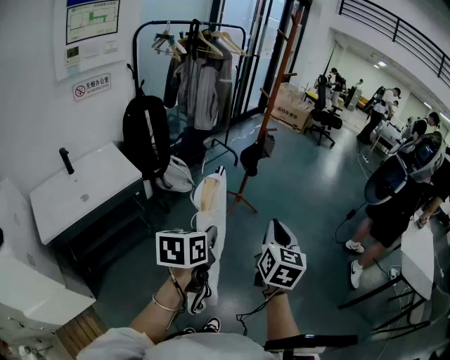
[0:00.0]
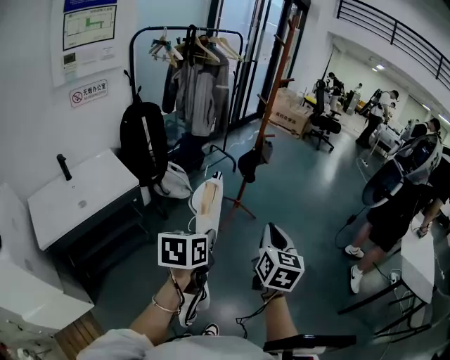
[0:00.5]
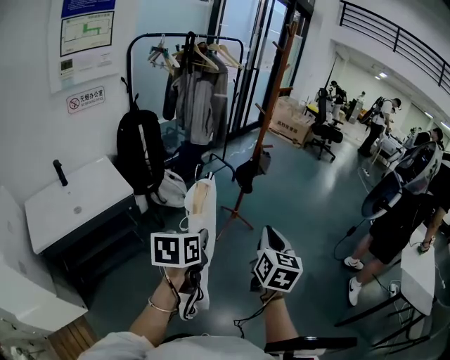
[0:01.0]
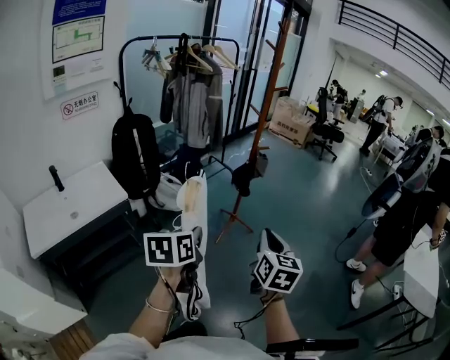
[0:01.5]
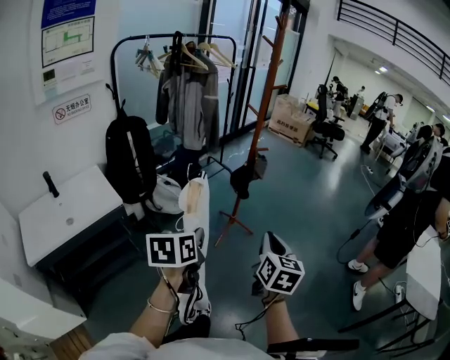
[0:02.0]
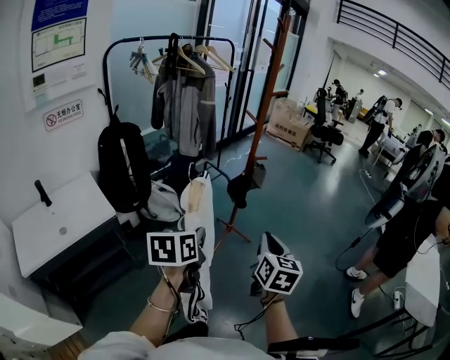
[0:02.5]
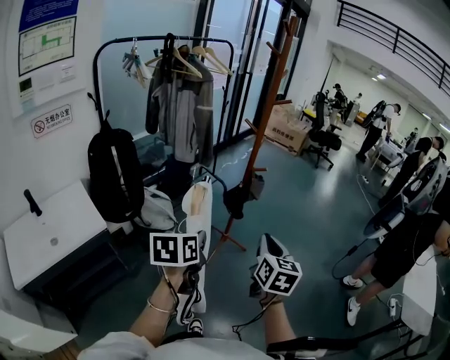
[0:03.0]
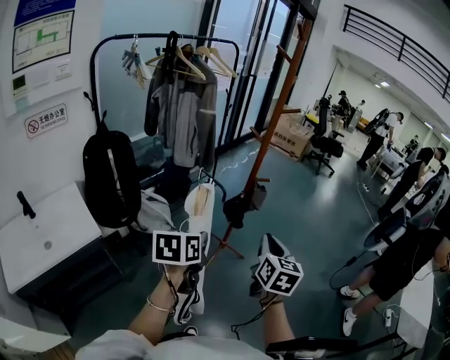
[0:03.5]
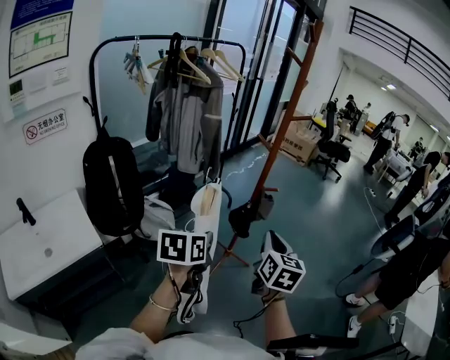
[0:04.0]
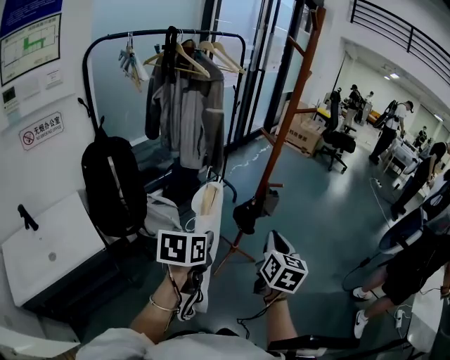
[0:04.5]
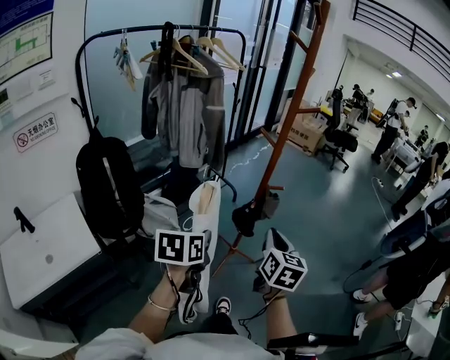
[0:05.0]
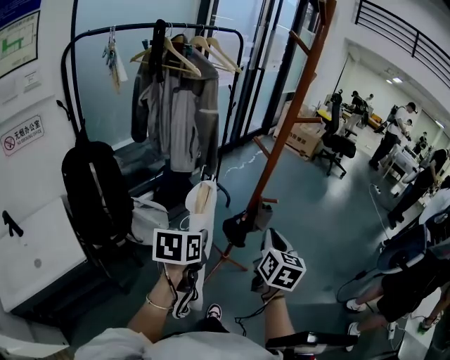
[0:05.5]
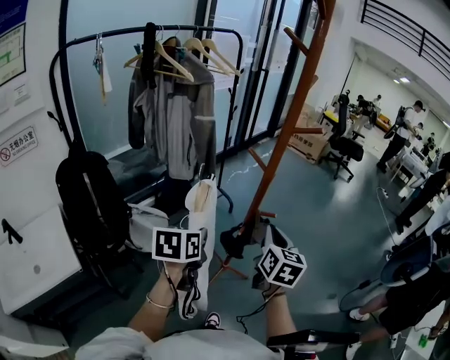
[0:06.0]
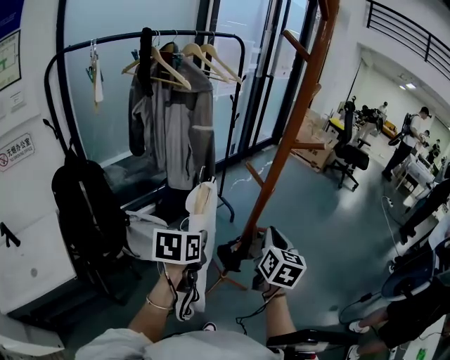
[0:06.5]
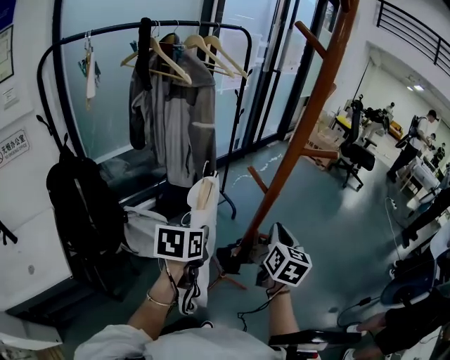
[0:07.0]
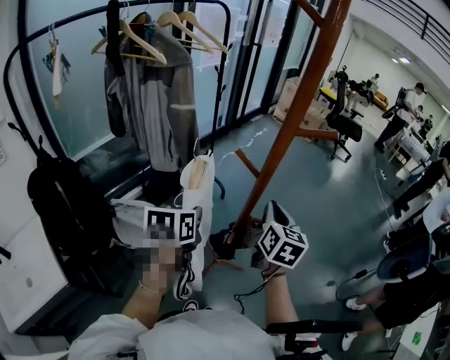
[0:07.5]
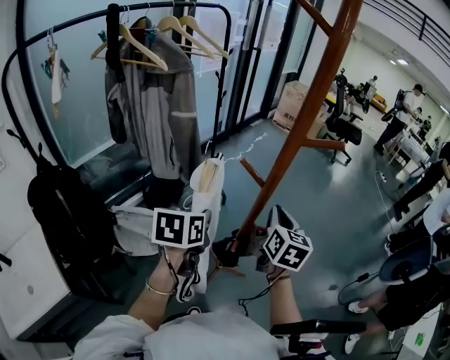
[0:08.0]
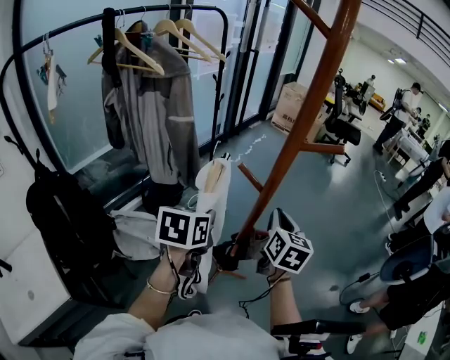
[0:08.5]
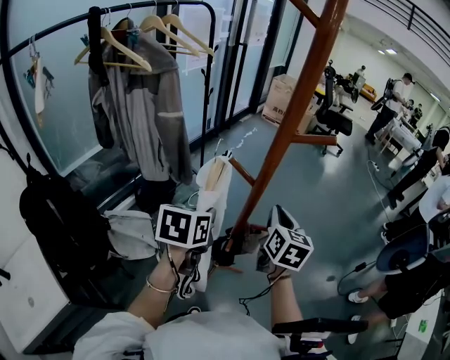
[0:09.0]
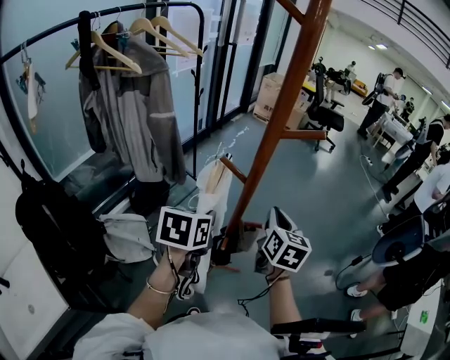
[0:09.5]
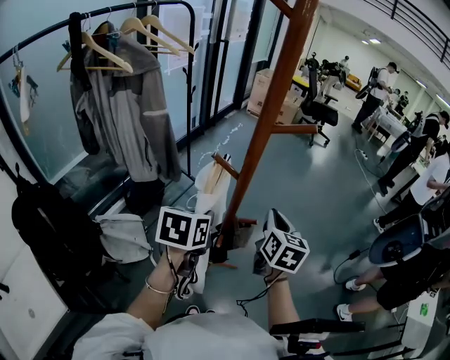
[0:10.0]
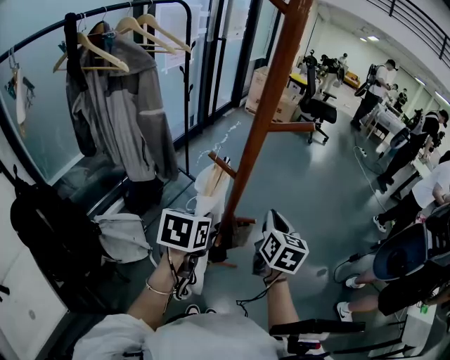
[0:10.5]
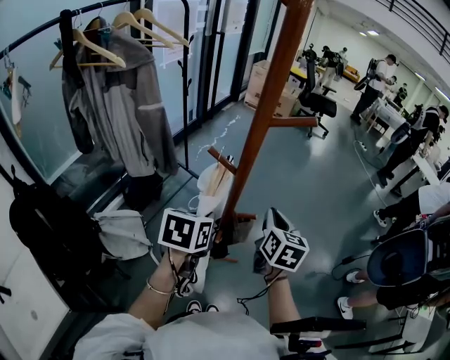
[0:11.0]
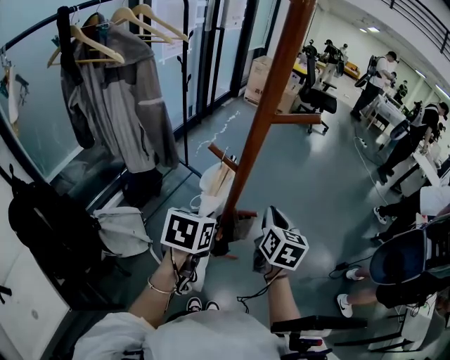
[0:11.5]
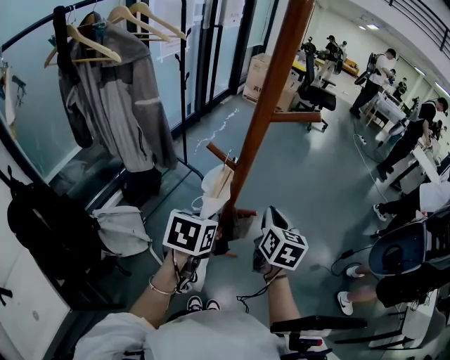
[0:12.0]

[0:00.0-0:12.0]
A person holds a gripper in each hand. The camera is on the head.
0:00.0 to 0:02.0: Both grippers move forward, approximately 15 cm.
0:02.0 to 0:04.0: The grippers both shift forward by approximately 25 cm.
0:04.0 to 0:06.0: Both grippers move forward, approximately 20 cm.
0:06.0 to 0:08.0: Both grippers move forward, approximately 15 cm.
0:08.0 to 0:10.0: Both grippers move to the right, about 5 cm.
0:10.0 to 0:12.0: The grippers move only a little.

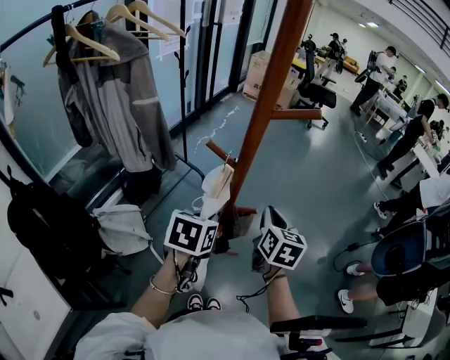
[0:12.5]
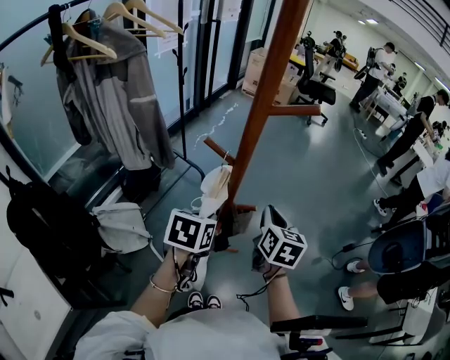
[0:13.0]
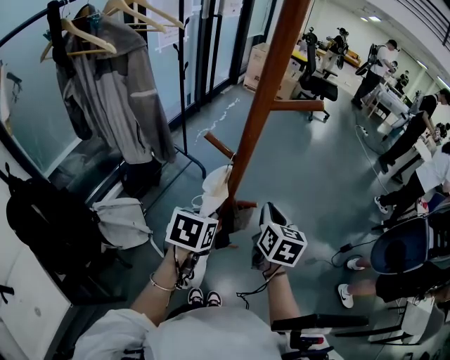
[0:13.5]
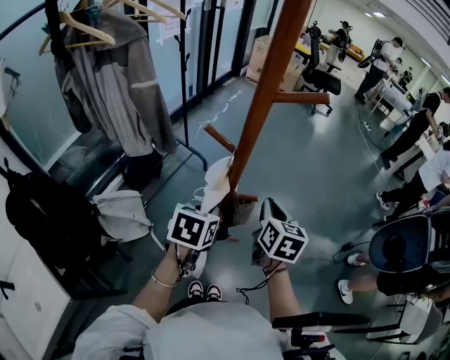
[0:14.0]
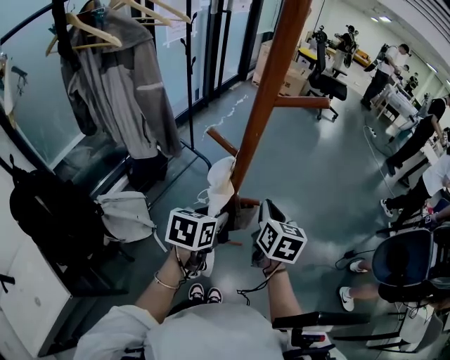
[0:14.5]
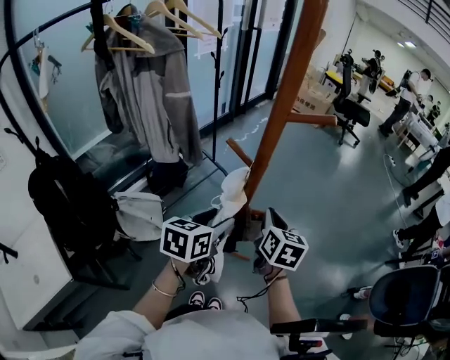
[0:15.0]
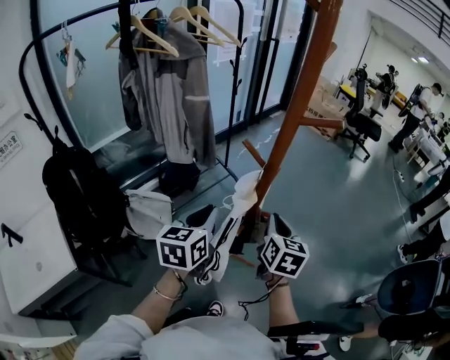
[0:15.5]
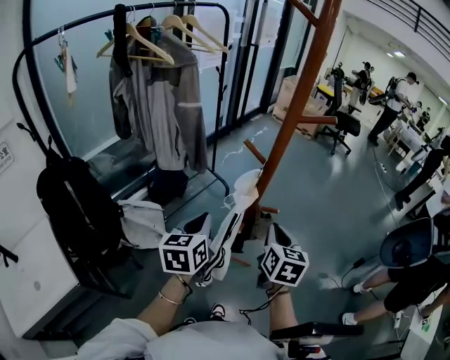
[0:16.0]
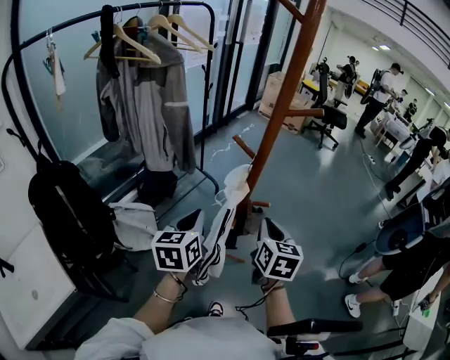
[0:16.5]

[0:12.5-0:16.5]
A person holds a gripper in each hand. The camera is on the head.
0:12.5 to 0:14.5: The left gripper opens its fingers.
0:14.5 to 0:16.5: The right gripper travels backward by roughly 10 cm. The left gripper is displaced to the left, backward and upward by some 15 cm, rotates about 30 degrees, and closes up.

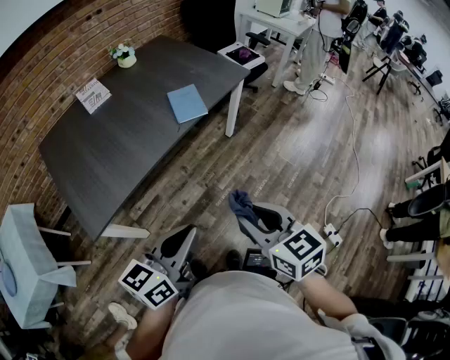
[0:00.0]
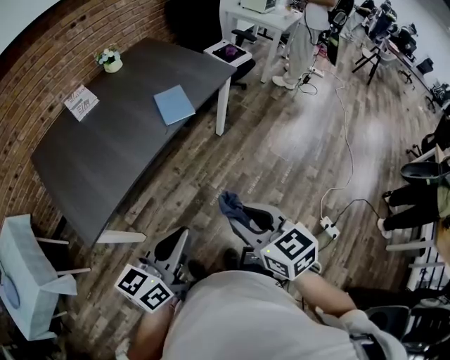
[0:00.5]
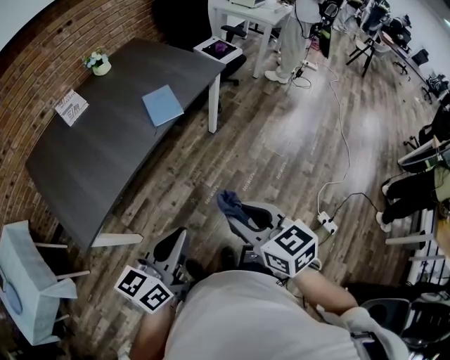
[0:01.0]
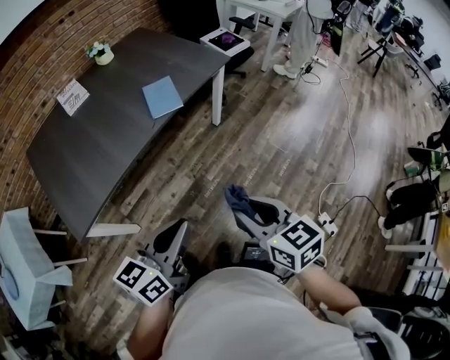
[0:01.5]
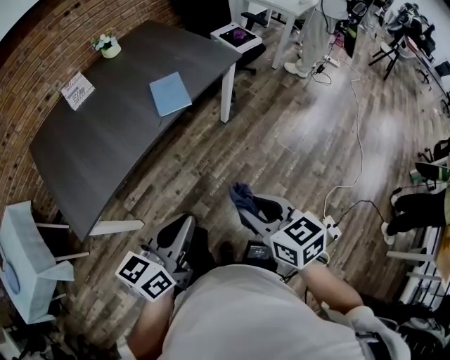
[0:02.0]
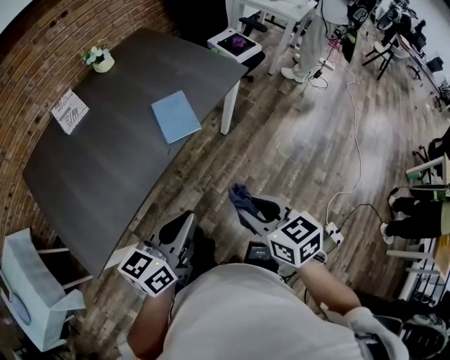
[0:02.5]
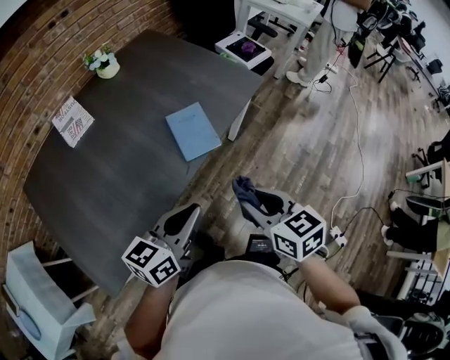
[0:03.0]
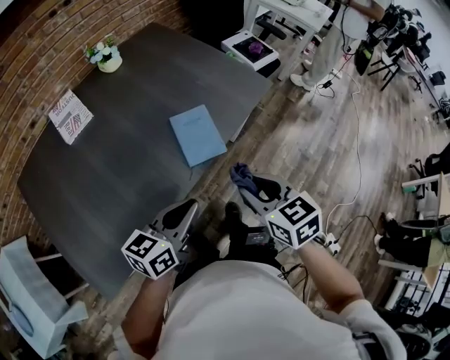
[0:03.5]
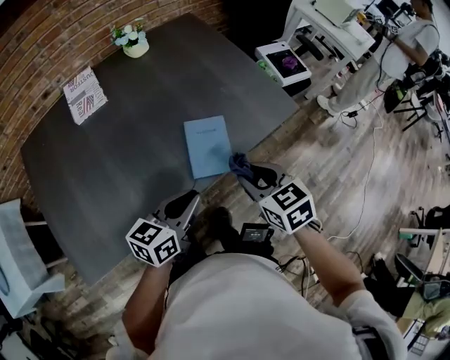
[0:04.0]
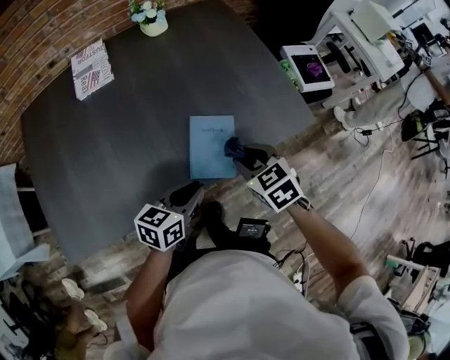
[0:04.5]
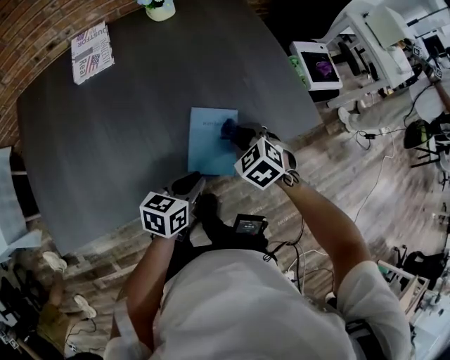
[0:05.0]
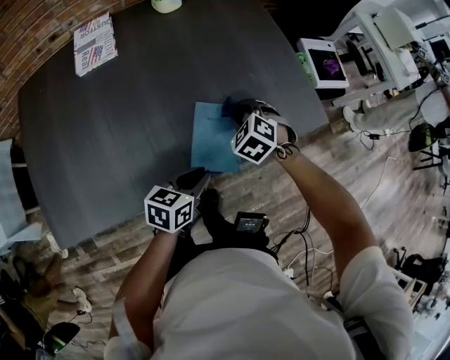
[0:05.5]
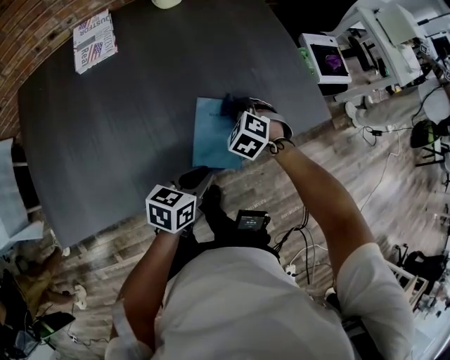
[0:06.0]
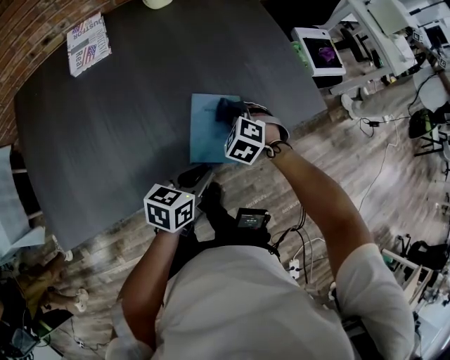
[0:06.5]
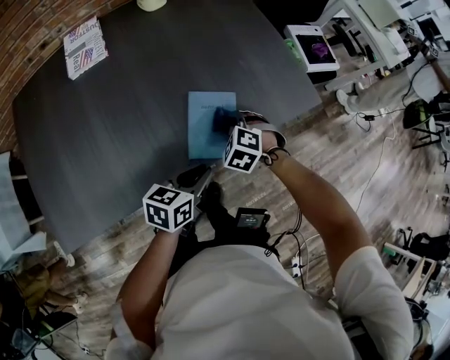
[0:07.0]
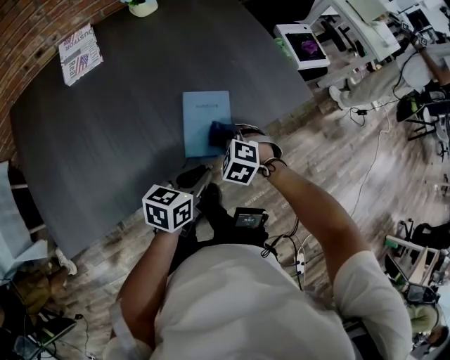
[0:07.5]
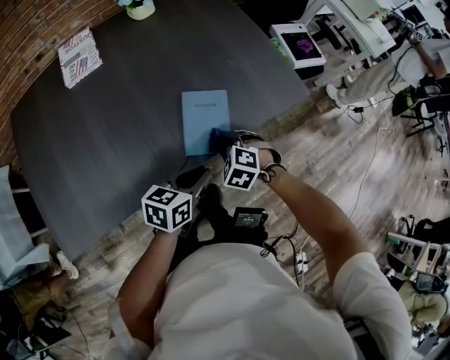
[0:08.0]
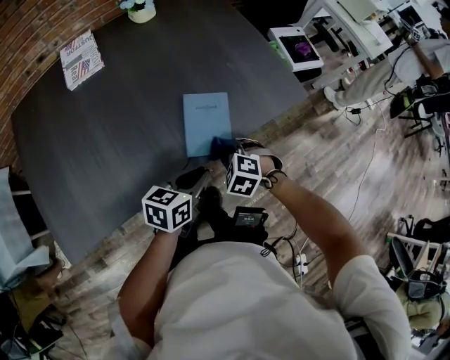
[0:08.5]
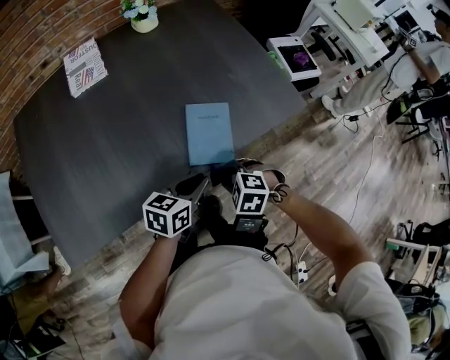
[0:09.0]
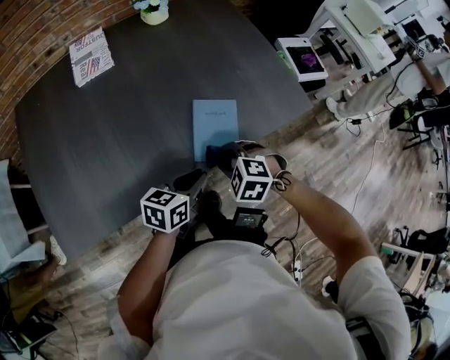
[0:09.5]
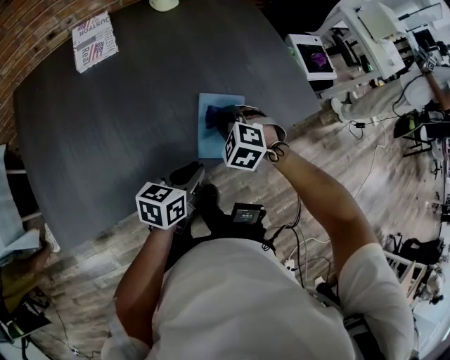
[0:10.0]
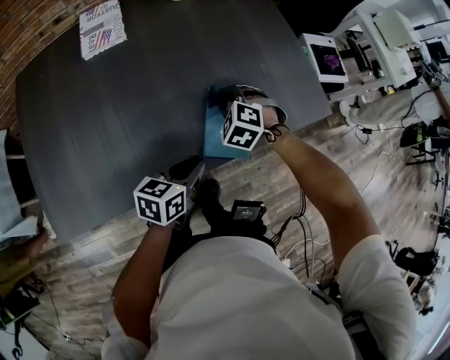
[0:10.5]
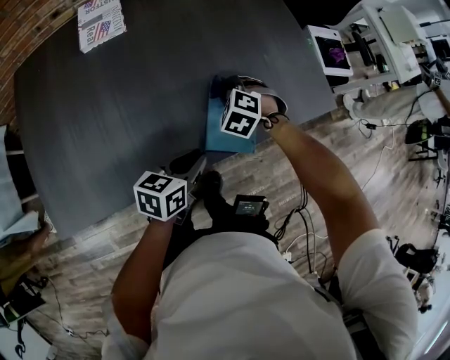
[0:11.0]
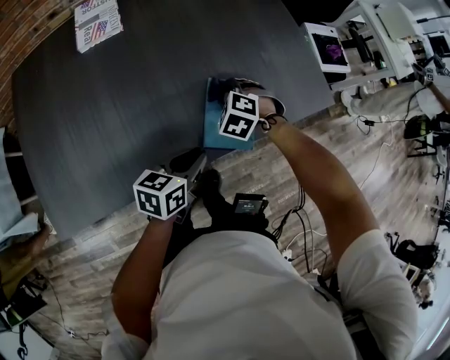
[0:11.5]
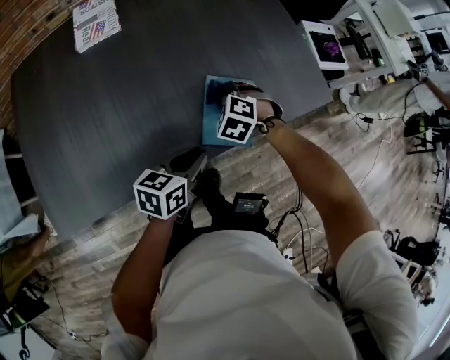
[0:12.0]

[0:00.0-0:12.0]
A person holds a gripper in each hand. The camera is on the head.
0:00.0 to 0:02.0: The right gripper shifts roughly 10 cm to the right and forward; the left gripper heads forward and to the right, covering some 10 cm.
0:02.0 to 0:04.0: Both grippers move forward, about 40 cm. The right gripper rotates approximately 20 degrees.
0:04.0 to 0:06.0: The right gripper is displaced forward and downward by about 25 cm, and twists some 50 degrees counterclockwise, seen from behind. The left gripper heads downward and forward, covering some 15 cm.
0:06.0 to 0:08.0: The left gripper changes place by about 5 cm. Meanwhile the right gripper heads backward, covering about 15 cm.
0:08.0 to 0:10.0: The left gripper travels to the left by roughly 5 cm; the right gripper shifts about 10 cm forward and to the left.
0:10.0 to 0:12.0: The right gripper shifts by some 5 cm.
